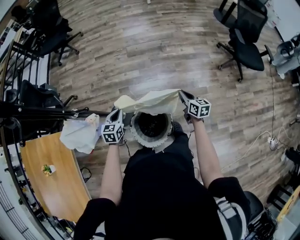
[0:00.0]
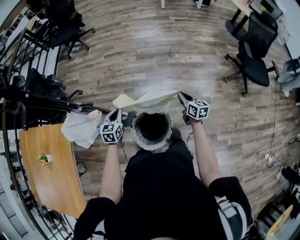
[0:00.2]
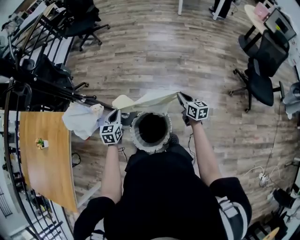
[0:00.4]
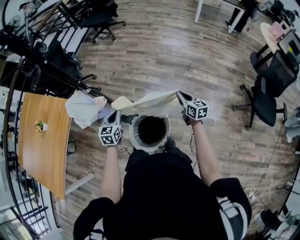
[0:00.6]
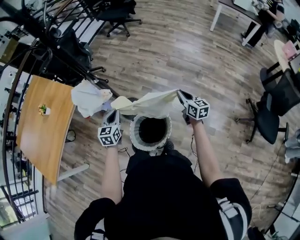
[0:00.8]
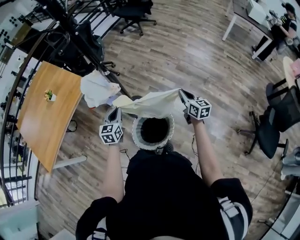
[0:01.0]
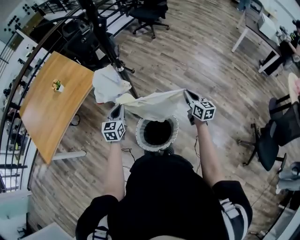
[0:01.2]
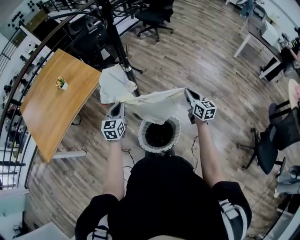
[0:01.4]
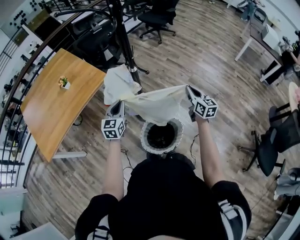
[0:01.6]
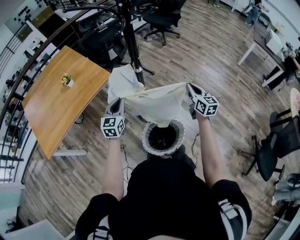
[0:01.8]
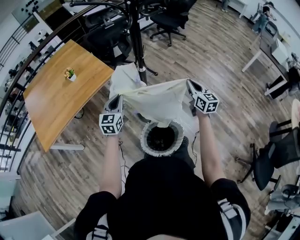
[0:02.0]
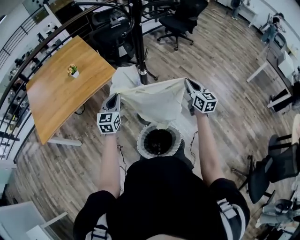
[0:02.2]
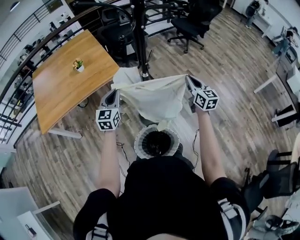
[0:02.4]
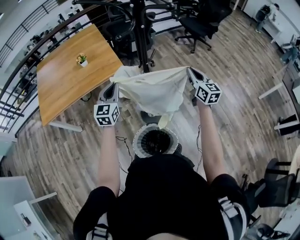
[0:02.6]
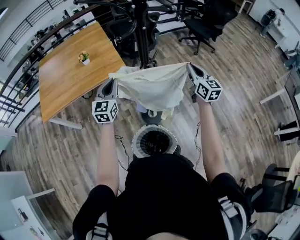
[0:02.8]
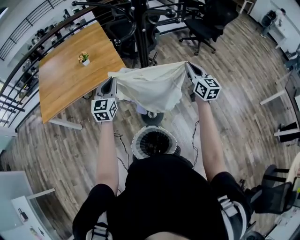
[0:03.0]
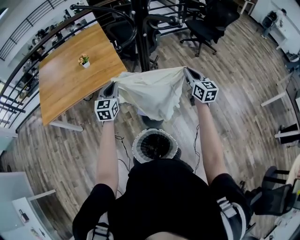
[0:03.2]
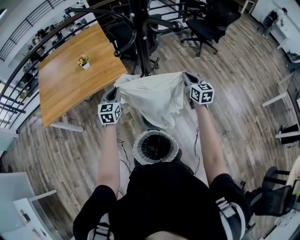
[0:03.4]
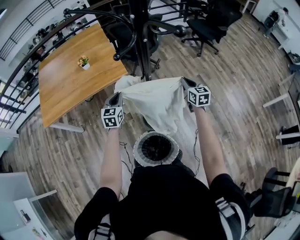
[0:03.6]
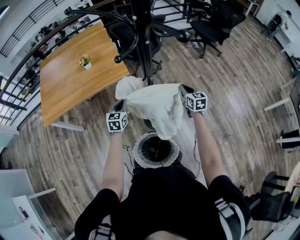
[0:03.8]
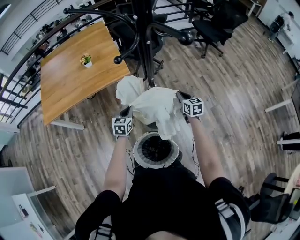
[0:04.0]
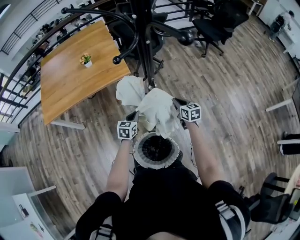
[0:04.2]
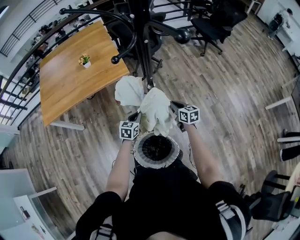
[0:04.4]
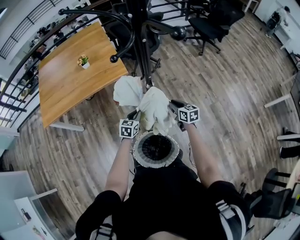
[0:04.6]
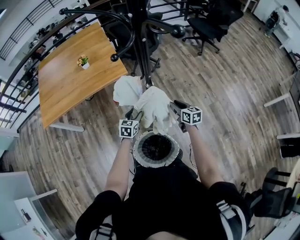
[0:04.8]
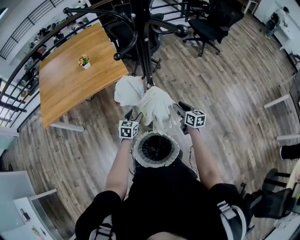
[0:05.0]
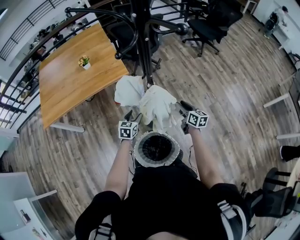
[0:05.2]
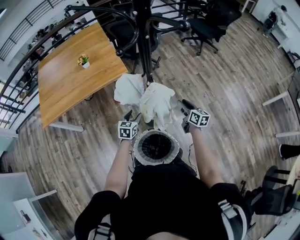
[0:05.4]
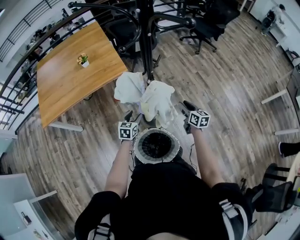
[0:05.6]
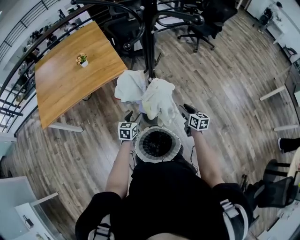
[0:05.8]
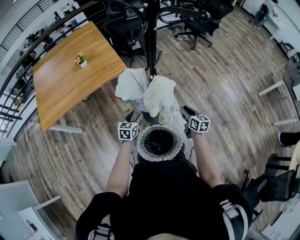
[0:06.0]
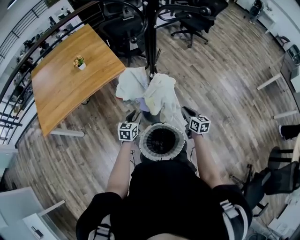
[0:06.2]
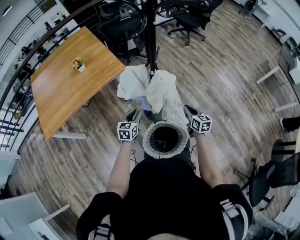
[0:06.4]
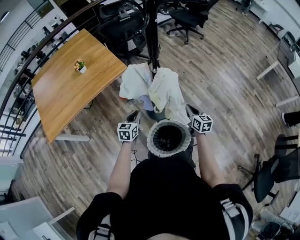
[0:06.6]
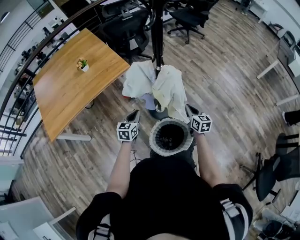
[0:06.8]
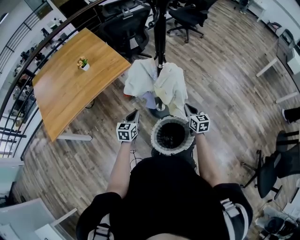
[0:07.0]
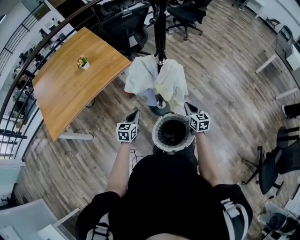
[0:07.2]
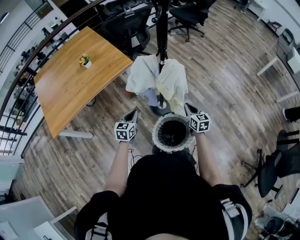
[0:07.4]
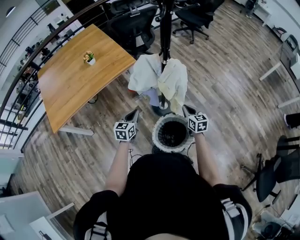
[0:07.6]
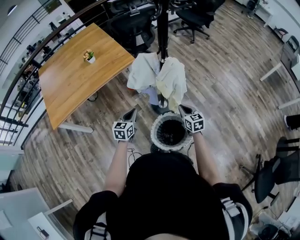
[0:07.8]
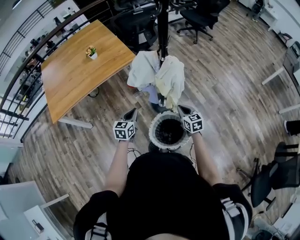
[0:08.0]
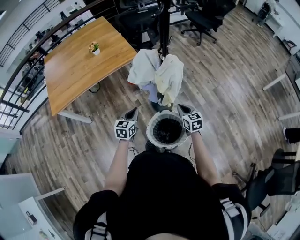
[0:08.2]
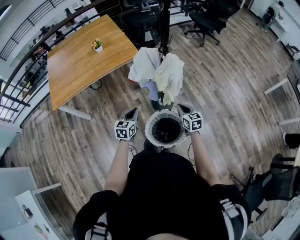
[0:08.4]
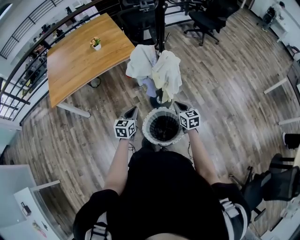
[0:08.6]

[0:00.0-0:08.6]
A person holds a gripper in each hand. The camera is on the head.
0:00.0 to 0:01.4: The right gripper changes place by some 30 cm, and changes its angle by roughly 50 degrees; the left gripper moves some 25 cm, and changes its angle by about 50 degrees.
0:01.4 to 0:02.8: The left gripper moves upward and forward, about 15 cm, and rotates approximately 30 degrees. The right gripper heads forward and upward, covering approximately 30 cm, and rotates approximately 30 degrees.
0:02.8 to 0:04.4: Both grippers travel together downward, roughly 25 cm. The right gripper turns by some 30 degrees. The left gripper points its fingers about 30 degrees further downward.
0:04.4 to 0:05.8: The right gripper is displaced backward and to the right by about 10 cm, and opens its fingers, while the left gripper opens its fingers.
0:05.8 to 0:07.2: The right gripper goes roughly 15 cm backward and to the left, and closes its fingers. The left gripper moves to the left and backward, roughly 10 cm, and closes.
0:07.2 to 0:08.6: The right gripper shifts about 5 cm backward, and changes its angle by roughly 20 degrees; the left gripper goes some 10 cm backward and to the right.

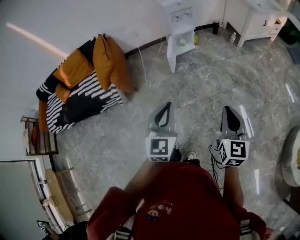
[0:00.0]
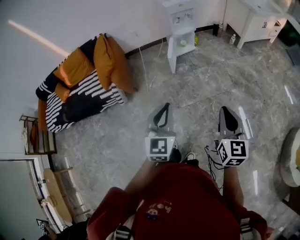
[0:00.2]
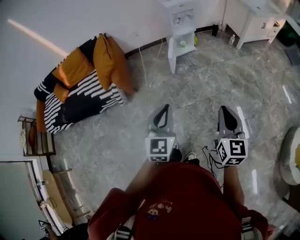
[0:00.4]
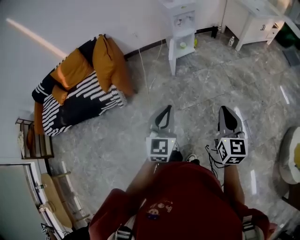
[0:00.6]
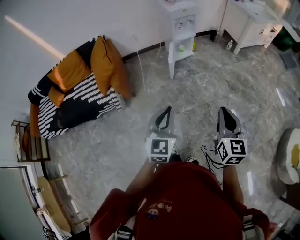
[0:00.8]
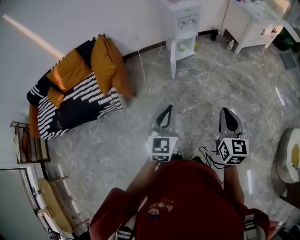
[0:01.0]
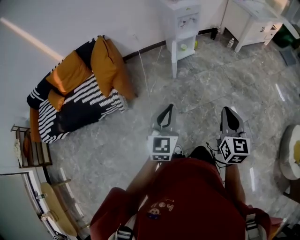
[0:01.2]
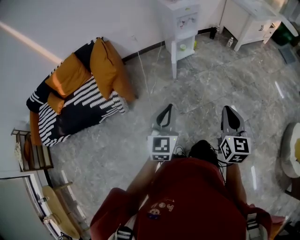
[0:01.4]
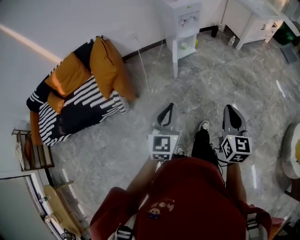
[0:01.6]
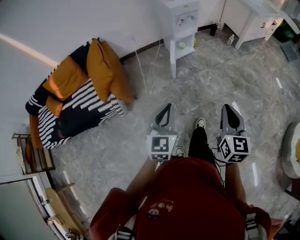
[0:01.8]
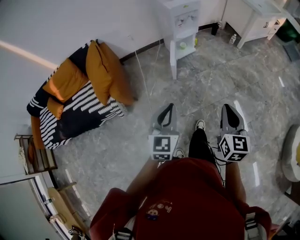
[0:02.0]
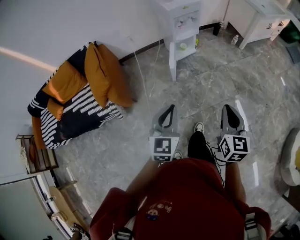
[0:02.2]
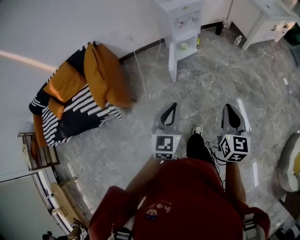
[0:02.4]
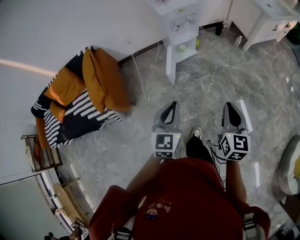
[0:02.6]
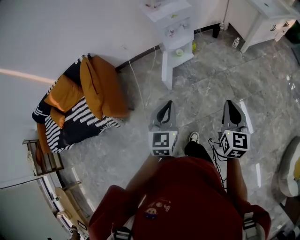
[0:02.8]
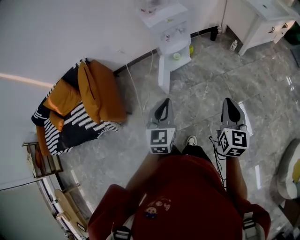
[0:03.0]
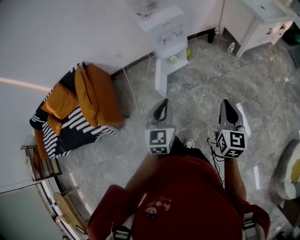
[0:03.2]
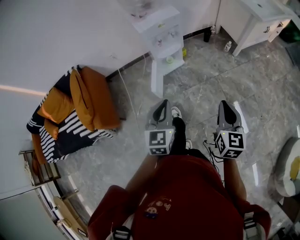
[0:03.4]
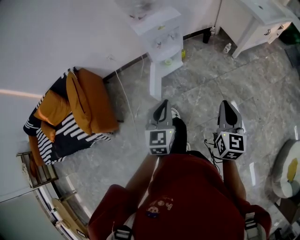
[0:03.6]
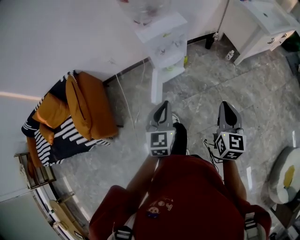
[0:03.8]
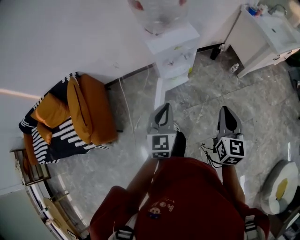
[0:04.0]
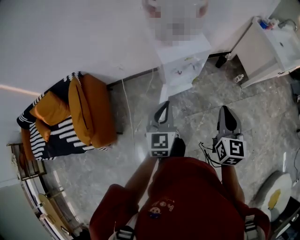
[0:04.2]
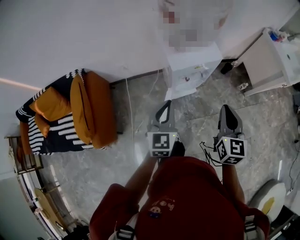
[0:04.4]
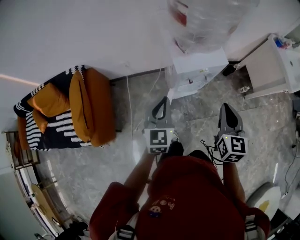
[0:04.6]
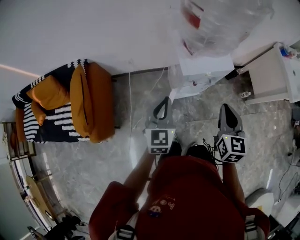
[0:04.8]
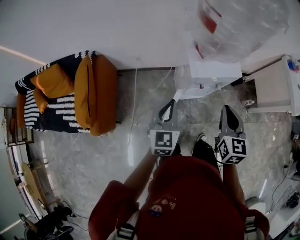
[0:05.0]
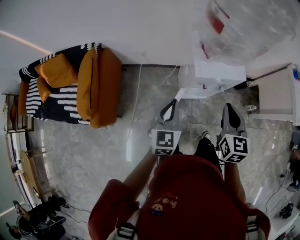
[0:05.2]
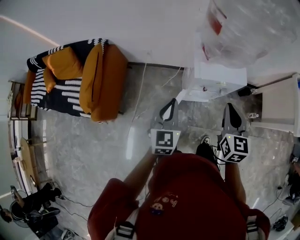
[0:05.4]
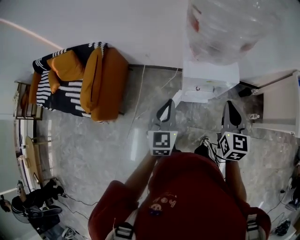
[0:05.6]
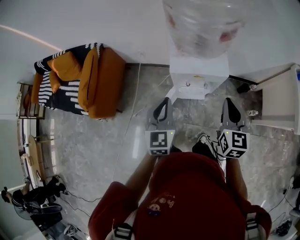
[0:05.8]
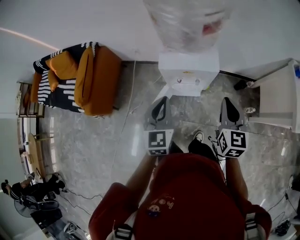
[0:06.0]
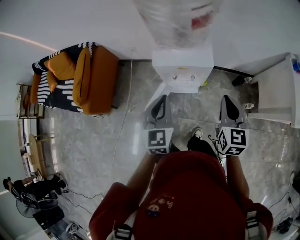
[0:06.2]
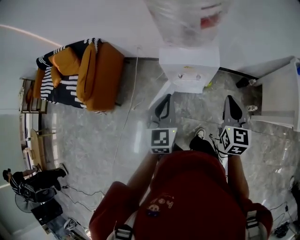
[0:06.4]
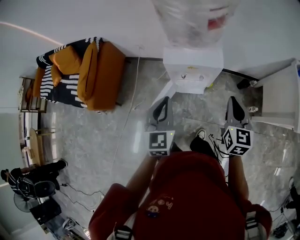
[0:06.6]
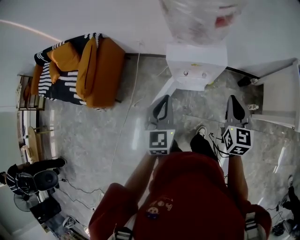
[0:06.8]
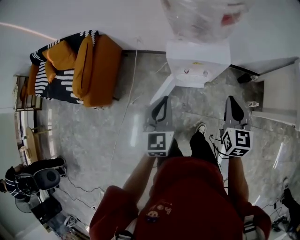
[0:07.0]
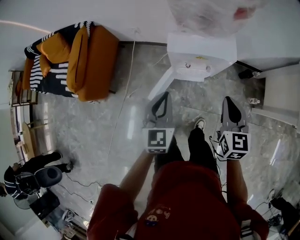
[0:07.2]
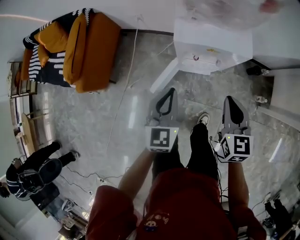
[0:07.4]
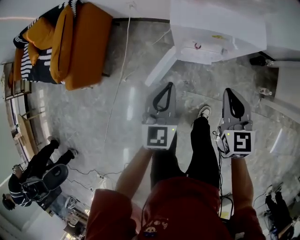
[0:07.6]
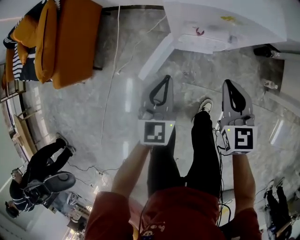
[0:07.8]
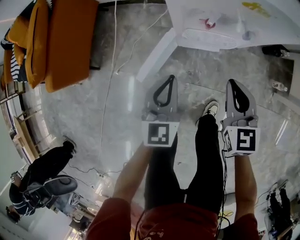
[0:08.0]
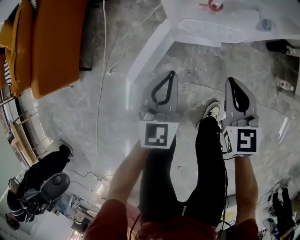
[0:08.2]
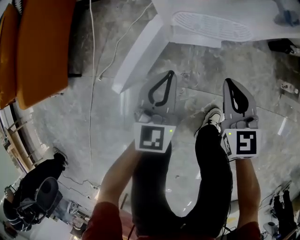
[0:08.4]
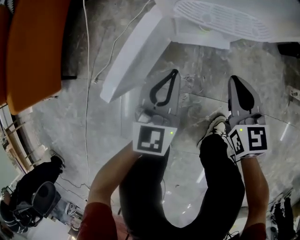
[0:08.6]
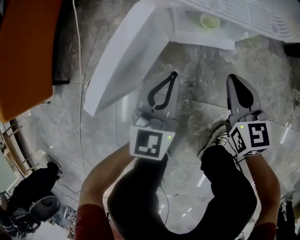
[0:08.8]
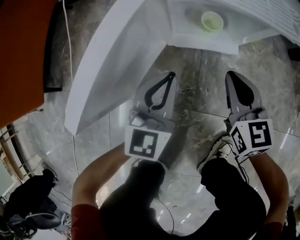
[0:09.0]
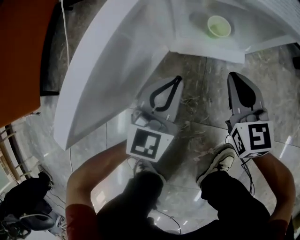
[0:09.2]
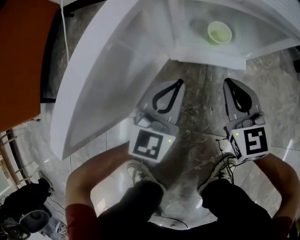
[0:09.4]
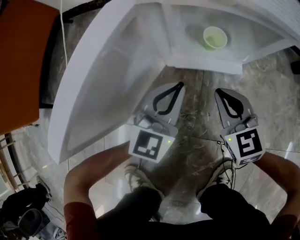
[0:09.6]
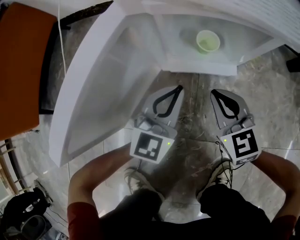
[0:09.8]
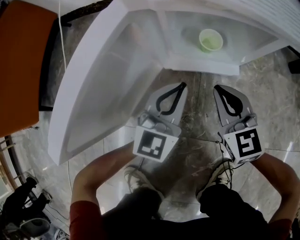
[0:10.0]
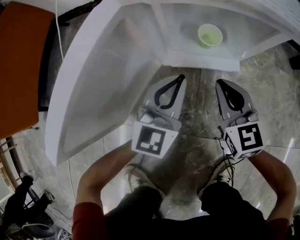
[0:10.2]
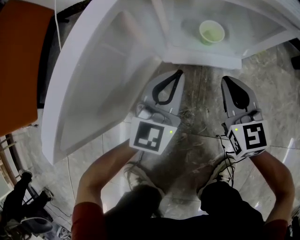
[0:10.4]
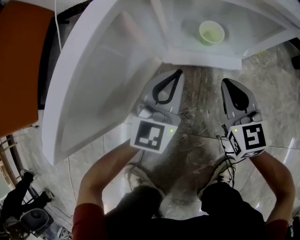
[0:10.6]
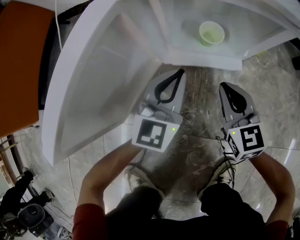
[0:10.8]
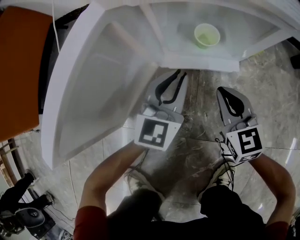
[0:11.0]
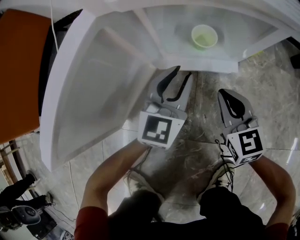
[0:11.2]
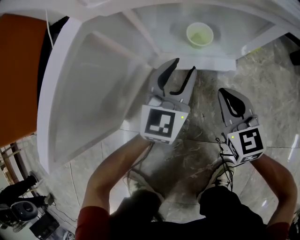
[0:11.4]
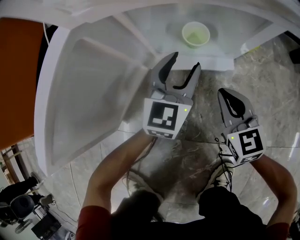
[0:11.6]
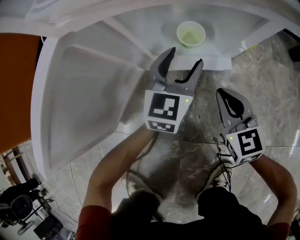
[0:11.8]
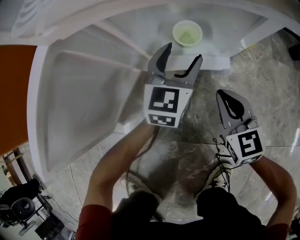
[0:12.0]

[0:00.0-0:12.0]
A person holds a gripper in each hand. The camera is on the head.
0:00.0 to 0:01.6: The right gripper goes roughly 20 cm to the left; the left gripper moves to the left and forward, approximately 20 cm.
0:01.6 to 0:03.0: Both grippers are carried forward and to the right, roughly 40 cm.
0:03.0 to 0:04.4: Both grippers travel together forward, some 40 cm.
0:04.4 to 0:06.0: The right gripper heads to the right and forward, covering roughly 20 cm, and rotates about 20 degrees. Meanwhile the left gripper moves to the right, some 15 cm, and rotates about 30 degrees.
0:06.0 to 0:07.6: The left gripper is displaced downward by roughly 20 cm. Meanwhile the right gripper travels downward and to the left by about 25 cm.
0:07.6 to 0:09.0: Both grippers travel together downward, about 60 cm.
0:09.0 to 0:10.4: The left gripper moves downward and forward, some 10 cm. The right gripper travels downward by about 10 cm.
0:10.4 to 0:12.0: The right gripper moves downward and to the right, about 10 cm, while the left gripper goes some 15 cm forward, to the right and downward, and opens its fingers.

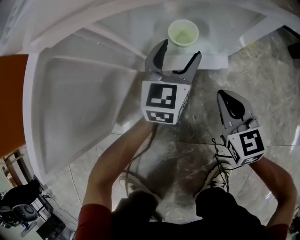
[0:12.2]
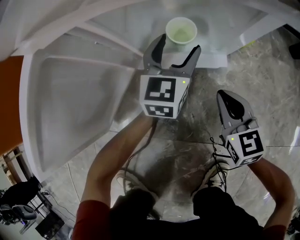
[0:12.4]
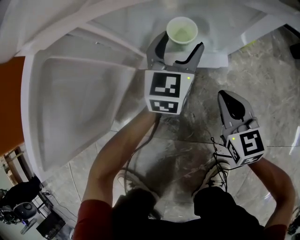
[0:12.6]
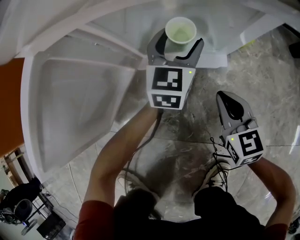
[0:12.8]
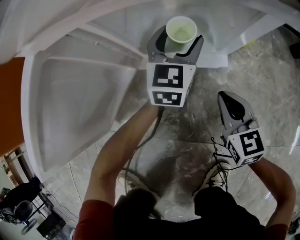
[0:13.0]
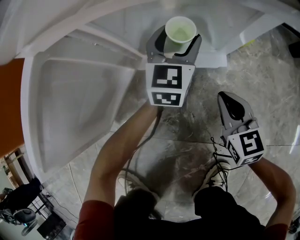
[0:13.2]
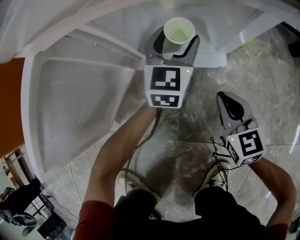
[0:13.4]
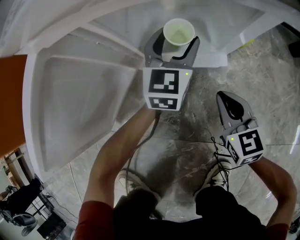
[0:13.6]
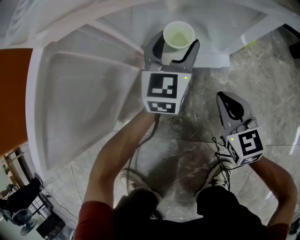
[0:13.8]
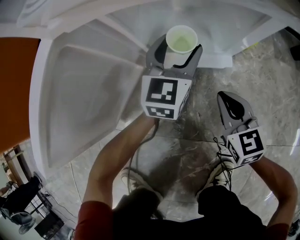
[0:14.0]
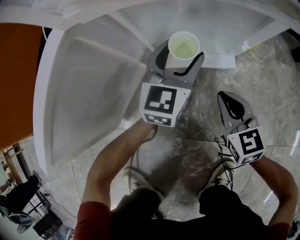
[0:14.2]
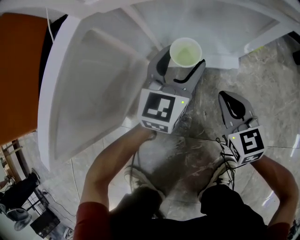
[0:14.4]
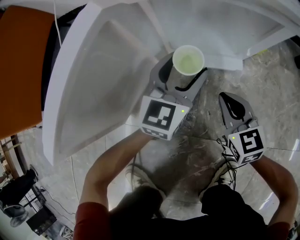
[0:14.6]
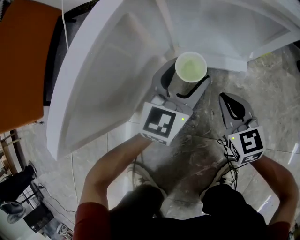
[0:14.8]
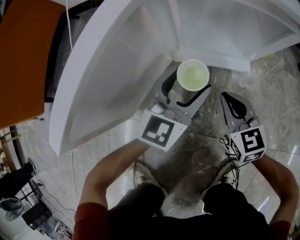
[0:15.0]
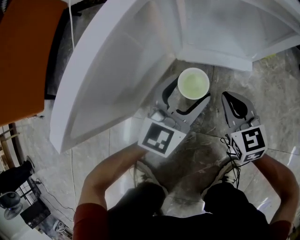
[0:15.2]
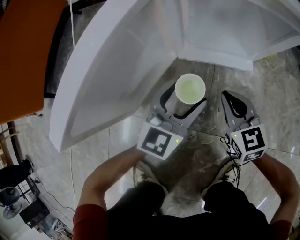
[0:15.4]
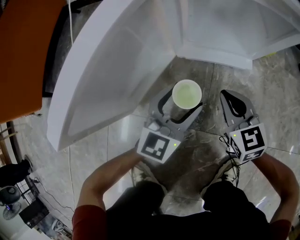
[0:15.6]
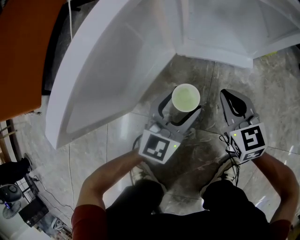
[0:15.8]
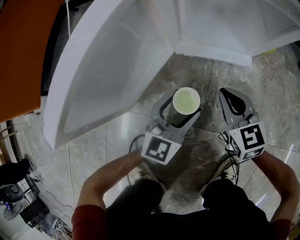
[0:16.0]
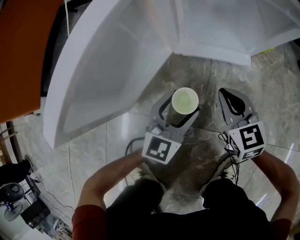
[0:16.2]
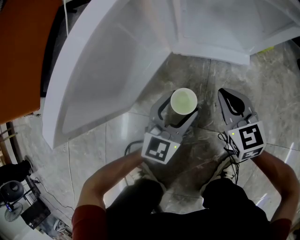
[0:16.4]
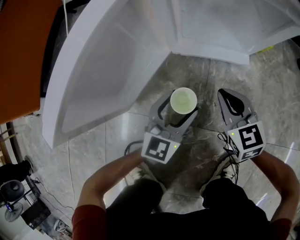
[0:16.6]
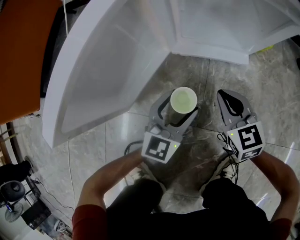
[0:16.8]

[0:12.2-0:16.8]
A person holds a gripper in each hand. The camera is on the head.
0:12.2 to 0:13.8: The grippers move only a little.
0:13.8 to 0:15.2: The right gripper travels to the left by roughly 10 cm. Meanwhile the left gripper shifts roughly 20 cm backward and to the left.
0:15.2 to 0:16.8: The left gripper shifts some 10 cm downward and backward.
